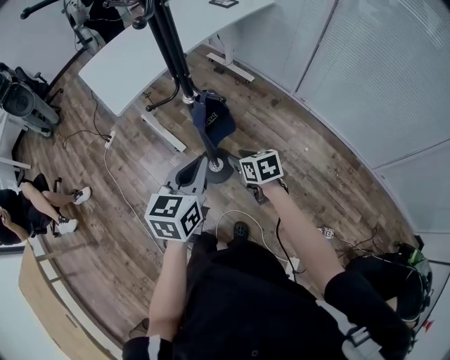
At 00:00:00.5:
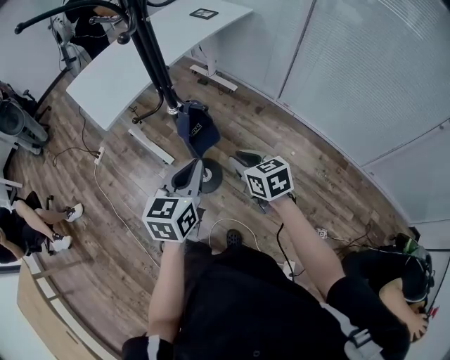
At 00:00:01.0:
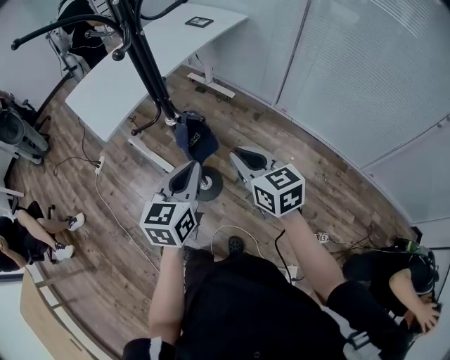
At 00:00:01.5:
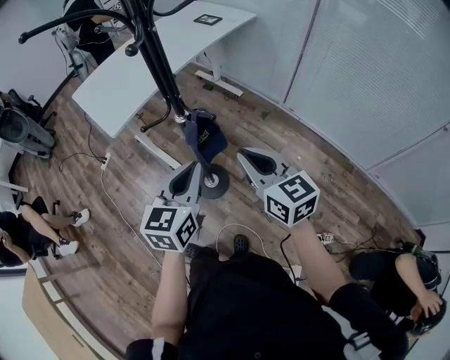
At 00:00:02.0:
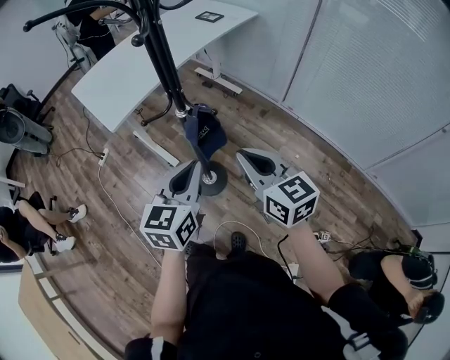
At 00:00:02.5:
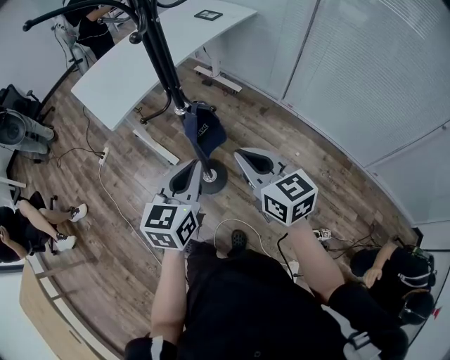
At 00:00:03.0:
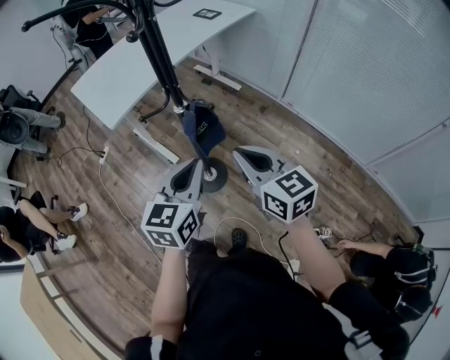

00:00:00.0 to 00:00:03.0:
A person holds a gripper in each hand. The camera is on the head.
00:00:00.0 to 00:00:01.5: The right gripper is displaced upward by about 20 cm, tilts its fingers roughly 30 degrees upward, and closes.
00:00:01.5 to 00:00:03.0: The grippers move only a little.

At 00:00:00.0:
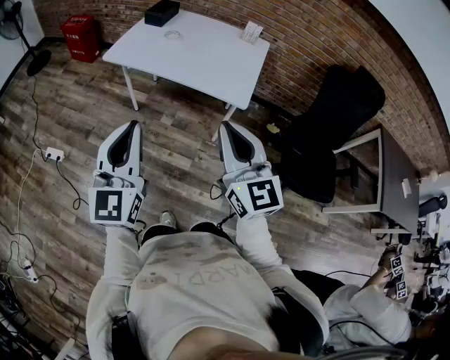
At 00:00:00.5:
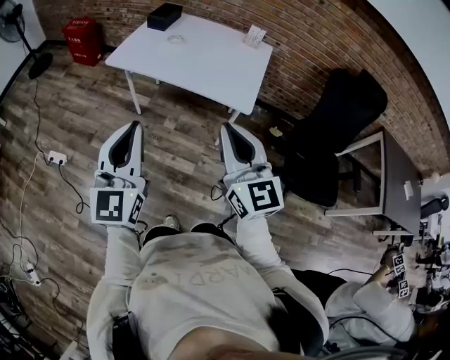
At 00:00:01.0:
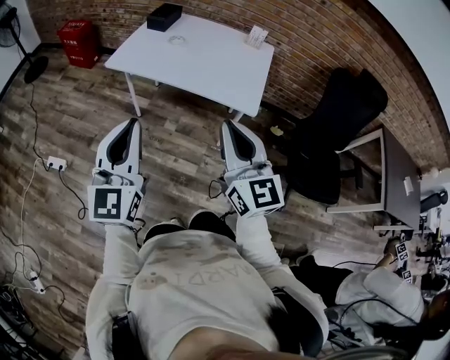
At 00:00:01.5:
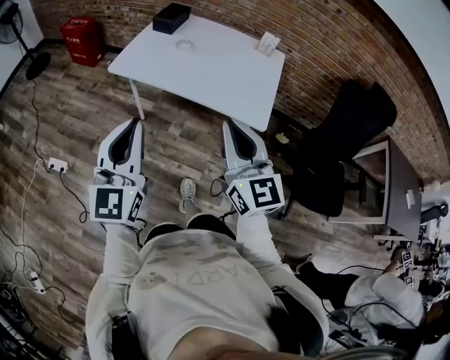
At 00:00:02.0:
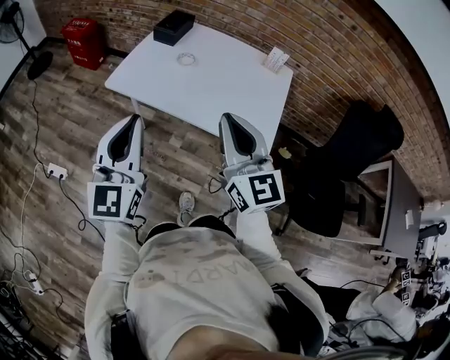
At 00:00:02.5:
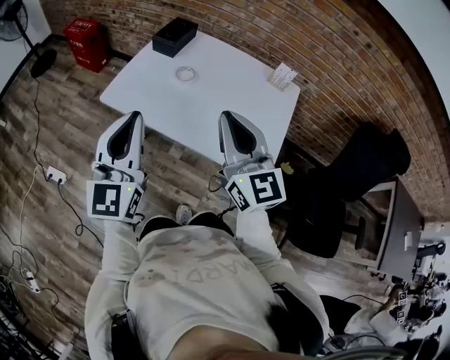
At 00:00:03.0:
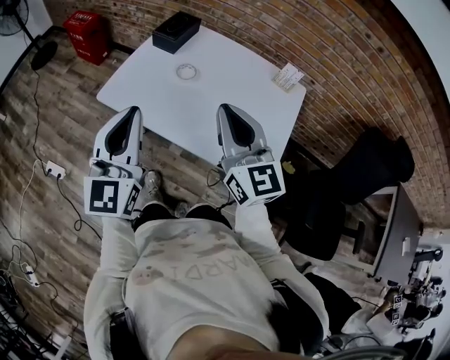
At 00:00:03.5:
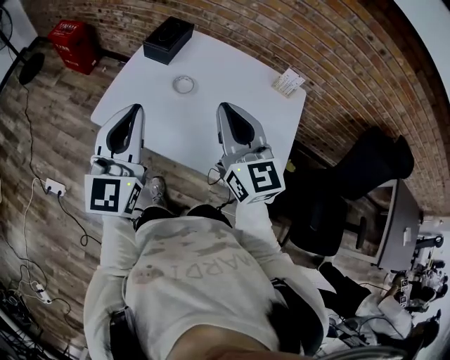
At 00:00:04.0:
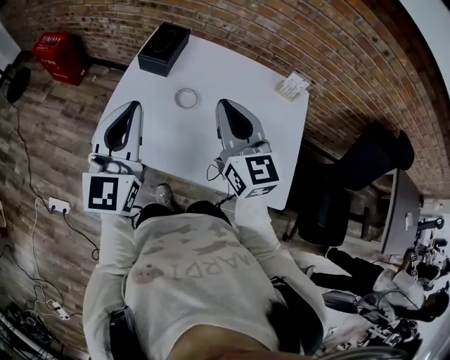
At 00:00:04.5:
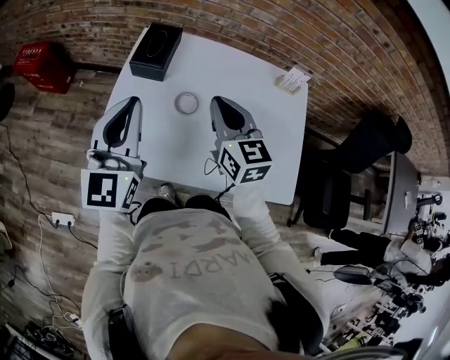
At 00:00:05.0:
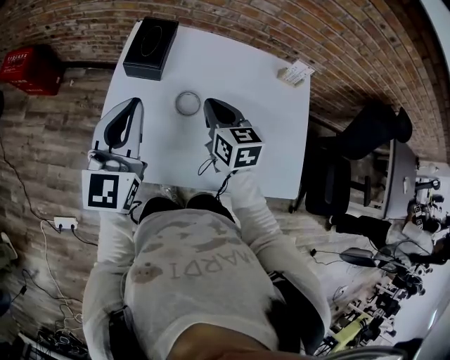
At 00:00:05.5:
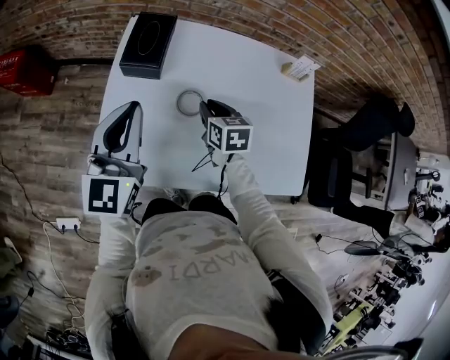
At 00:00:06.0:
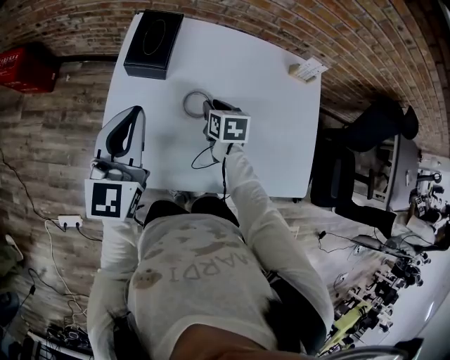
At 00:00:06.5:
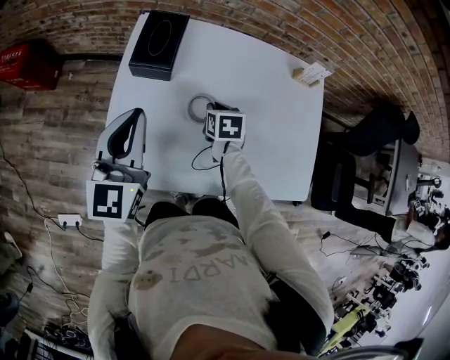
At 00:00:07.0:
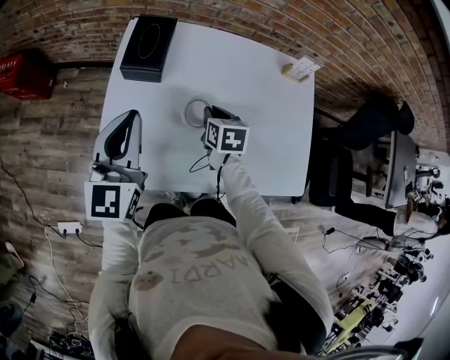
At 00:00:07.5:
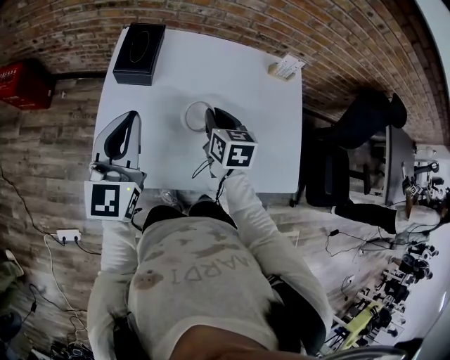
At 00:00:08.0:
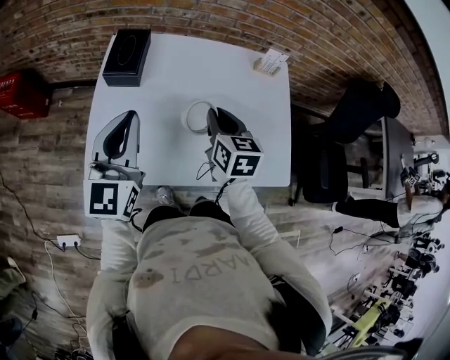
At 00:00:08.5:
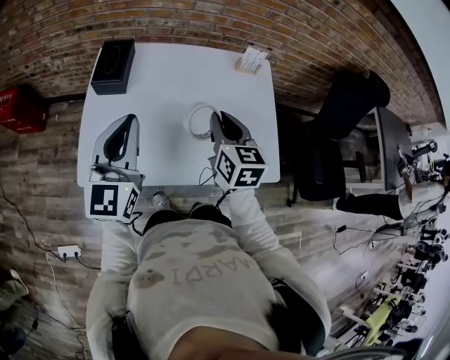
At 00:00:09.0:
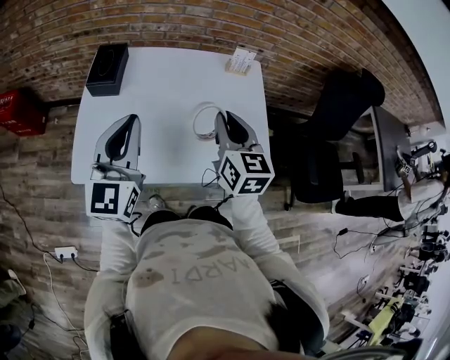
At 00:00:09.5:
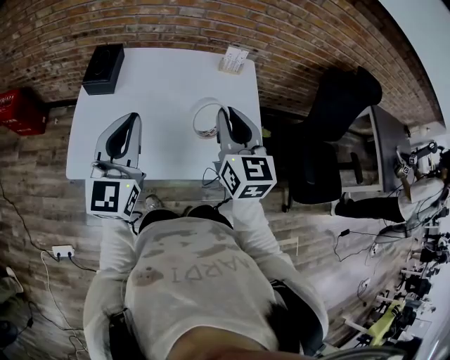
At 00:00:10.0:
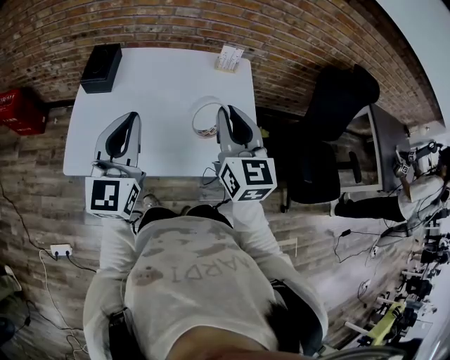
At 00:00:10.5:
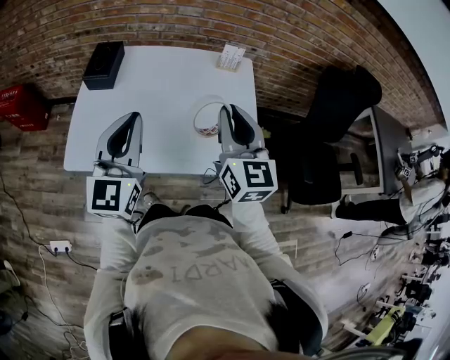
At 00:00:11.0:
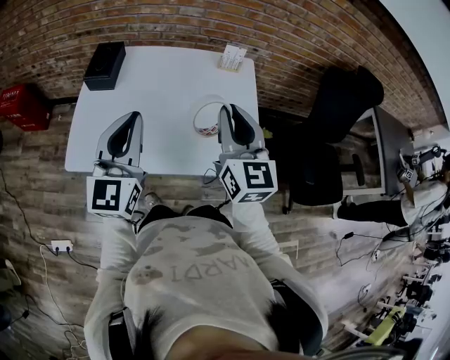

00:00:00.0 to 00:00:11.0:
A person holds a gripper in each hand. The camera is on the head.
00:00:00.0 to 00:00:02.0: The two grippers go some 25 cm forward.
00:00:02.0 to 00:00:03.5: The grippers both shift forward by roughly 25 cm.
00:00:03.5 to 00:00:05.5: The left gripper is displaced forward by some 25 cm, and changes its angle by some 20 degrees, while the right gripper is displaced downward and forward by approximately 35 cm, and tilts its fingers some 40 degrees downward.
00:00:05.5 to 00:00:07.5: The right gripper goes about 5 cm upward.
00:00:07.5 to 00:00:09.0: The left gripper goes some 20 cm to the right, backward and upward. Meanwhile the right gripper heads to the right, upward and backward, covering about 25 cm, and rotates approximately 20 degrees.
00:00:09.0 to 00:00:11.0: The right gripper is displaced upward, backward and to the right by about 10 cm; the left gripper travels to the right by about 5 cm.

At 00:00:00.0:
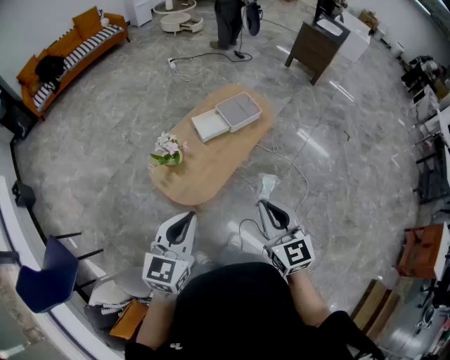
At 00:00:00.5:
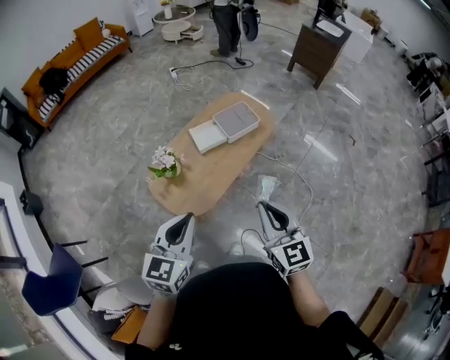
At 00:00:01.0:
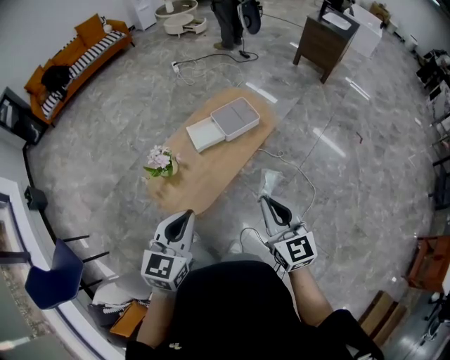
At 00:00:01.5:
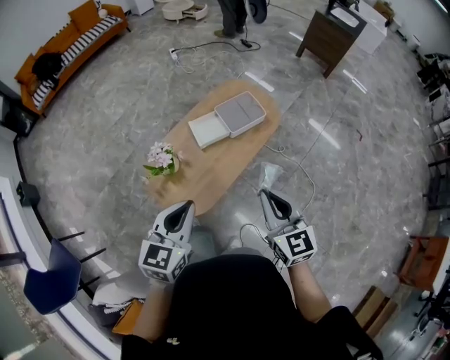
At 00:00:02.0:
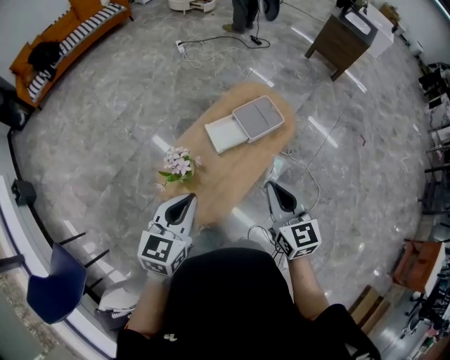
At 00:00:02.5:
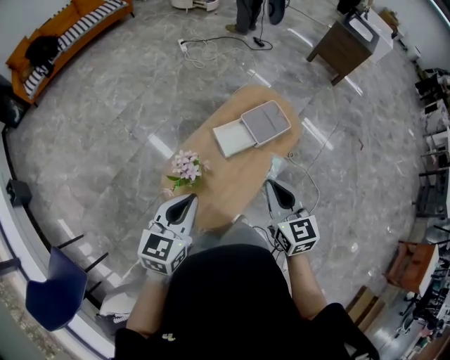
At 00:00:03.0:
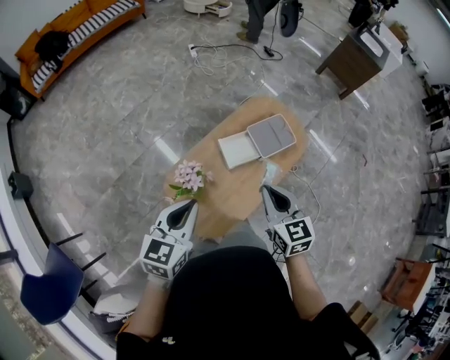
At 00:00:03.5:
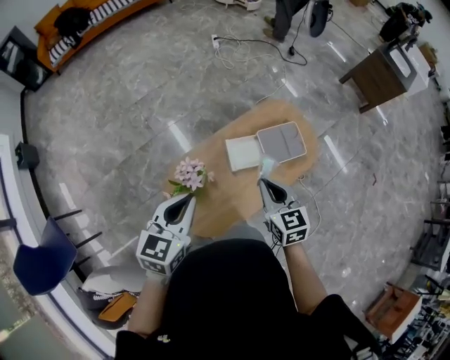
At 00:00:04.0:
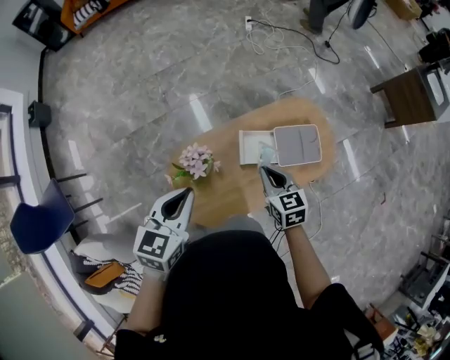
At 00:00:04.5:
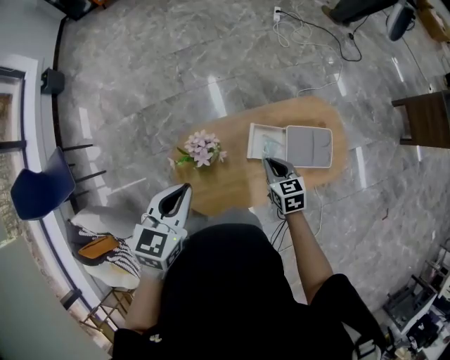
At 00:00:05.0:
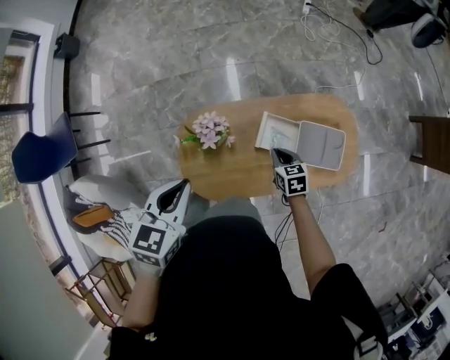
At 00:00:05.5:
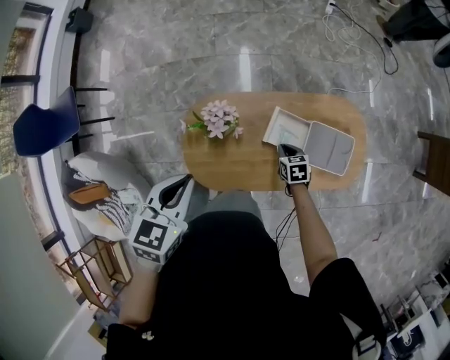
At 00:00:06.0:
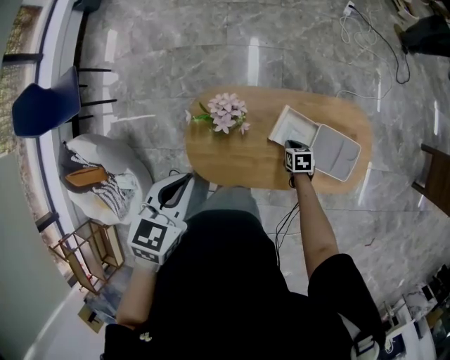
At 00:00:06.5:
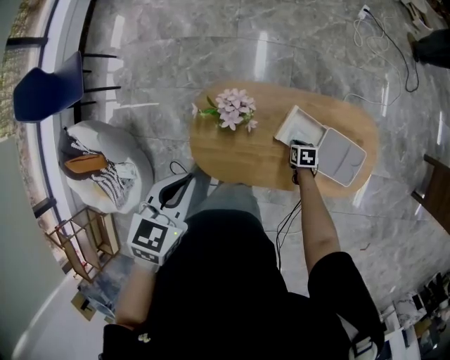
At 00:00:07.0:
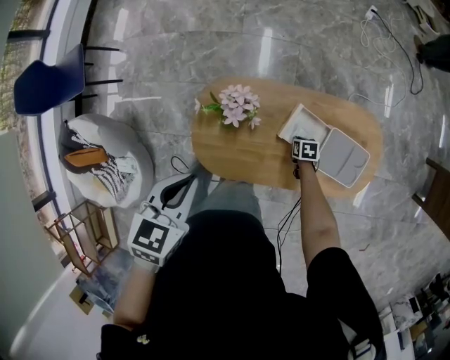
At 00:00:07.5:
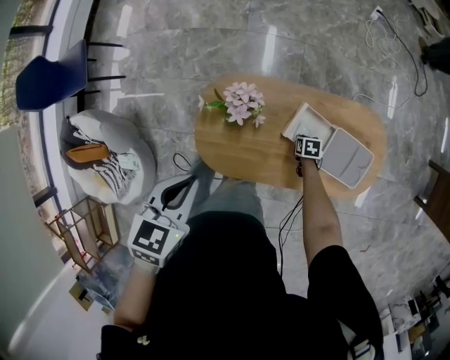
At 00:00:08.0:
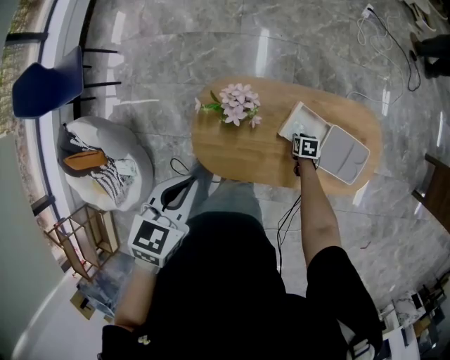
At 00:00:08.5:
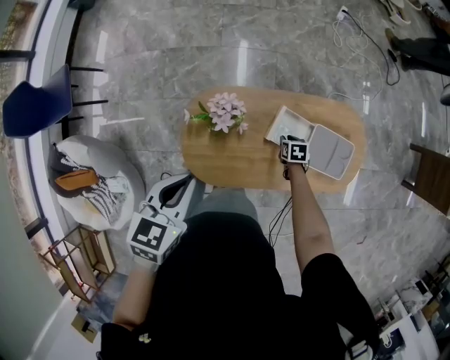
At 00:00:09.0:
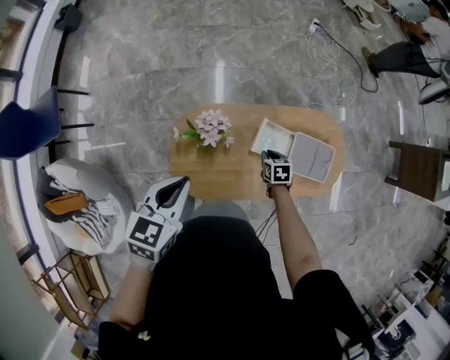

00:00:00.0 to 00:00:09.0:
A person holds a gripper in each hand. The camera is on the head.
00:00:00.0 to 00:00:02.0: Both grippers travel together forward, about 25 cm.
00:00:02.0 to 00:00:04.5: The left gripper shifts by about 15 cm, and changes its angle by some 40 degrees, while the right gripper ends up roughly 35 cm from where it was, and changes its angle by about 50 degrees.
00:00:04.5 to 00:00:07.0: The right gripper moves downward, approximately 30 cm, and swivels about 40 degrees. Meanwhile the left gripper shifts by roughly 10 cm.
00:00:07.0 to 00:00:09.0: The right gripper is displaced upward by approximately 15 cm.

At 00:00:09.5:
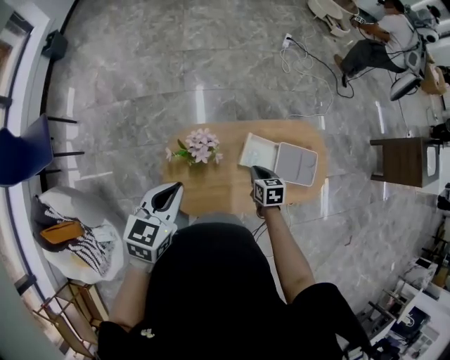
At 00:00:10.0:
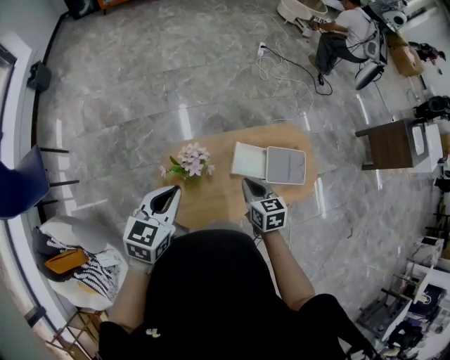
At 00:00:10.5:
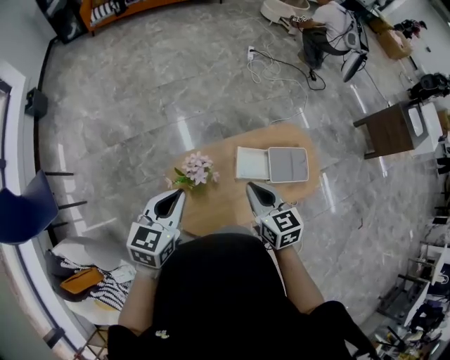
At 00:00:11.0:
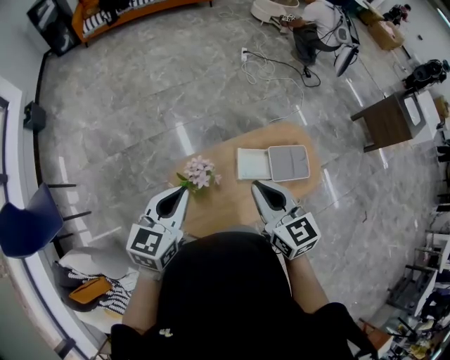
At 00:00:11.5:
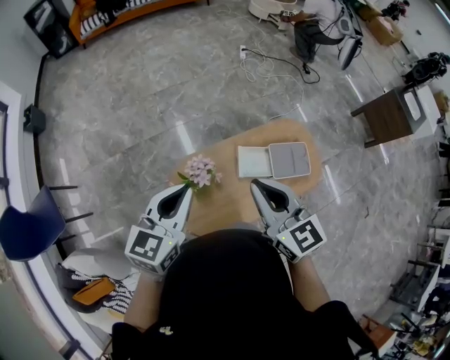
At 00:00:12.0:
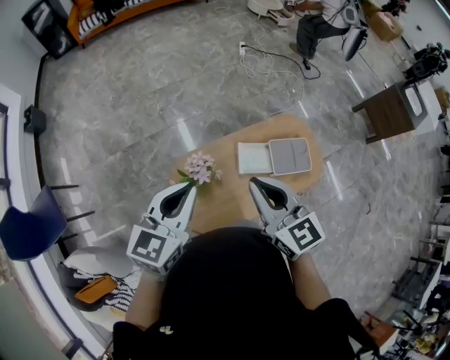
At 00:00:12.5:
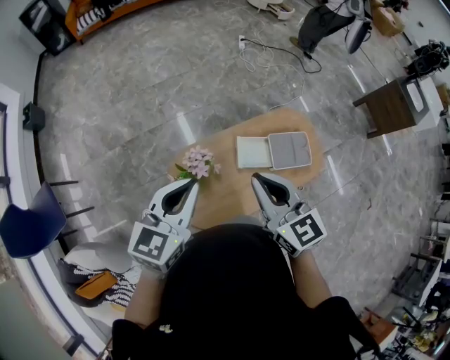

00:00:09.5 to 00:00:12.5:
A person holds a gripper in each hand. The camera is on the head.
00:00:09.5 to 00:00:11.0: The left gripper moves upward, some 10 cm, while the right gripper moves upward, some 35 cm, and tilts its fingers approximately 30 degrees upward.
00:00:11.0 to 00:00:12.5: The left gripper changes place by approximately 5 cm.
